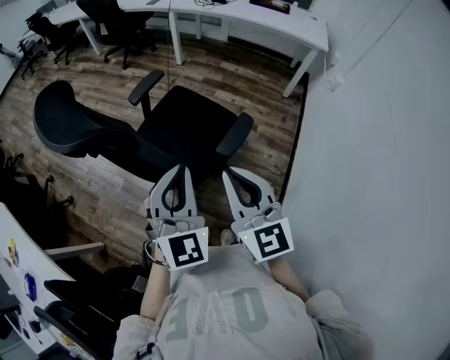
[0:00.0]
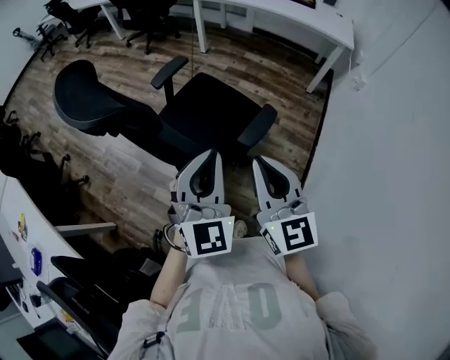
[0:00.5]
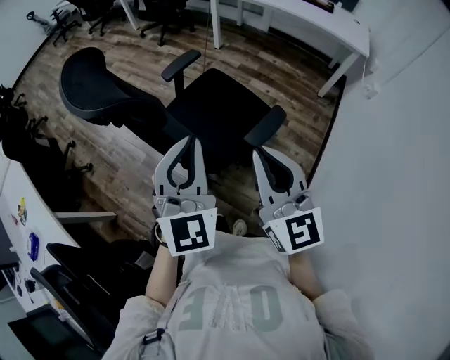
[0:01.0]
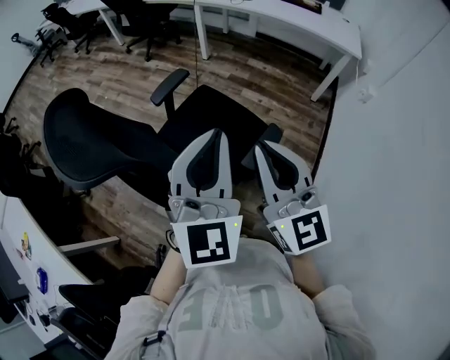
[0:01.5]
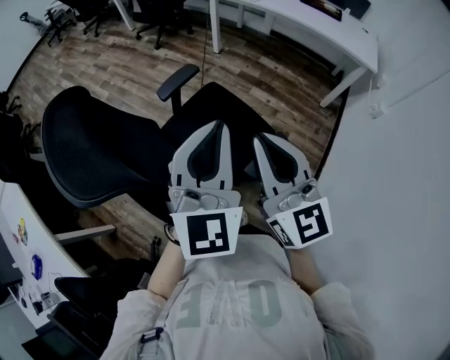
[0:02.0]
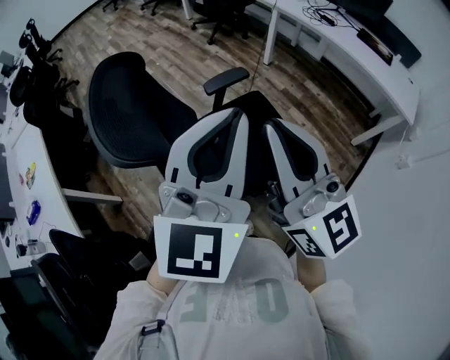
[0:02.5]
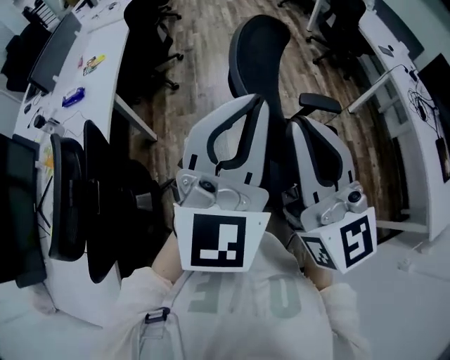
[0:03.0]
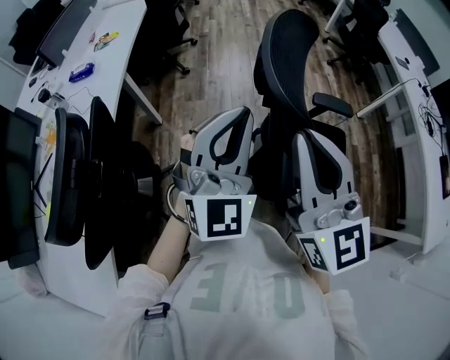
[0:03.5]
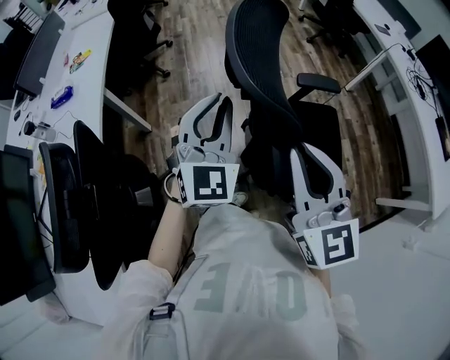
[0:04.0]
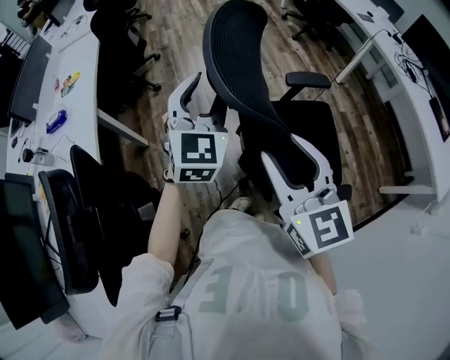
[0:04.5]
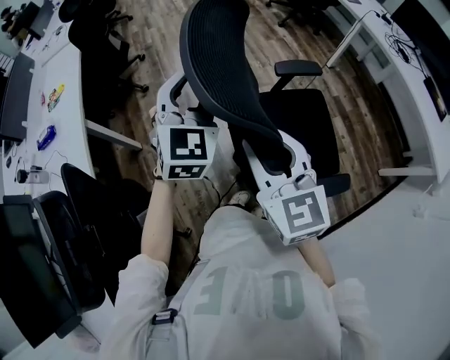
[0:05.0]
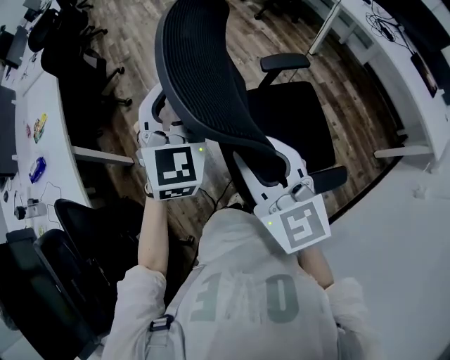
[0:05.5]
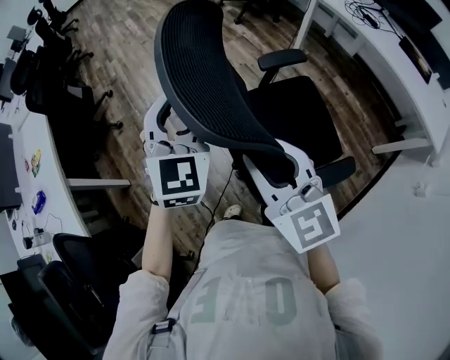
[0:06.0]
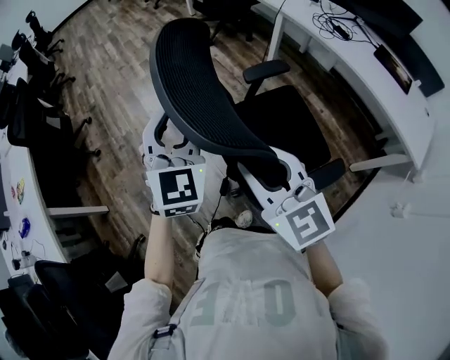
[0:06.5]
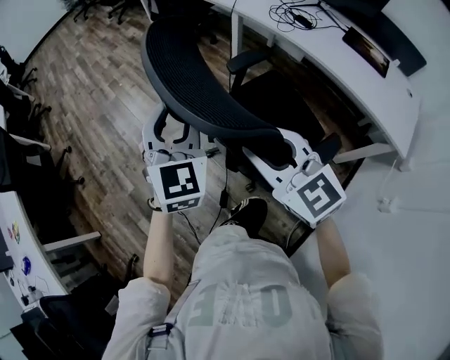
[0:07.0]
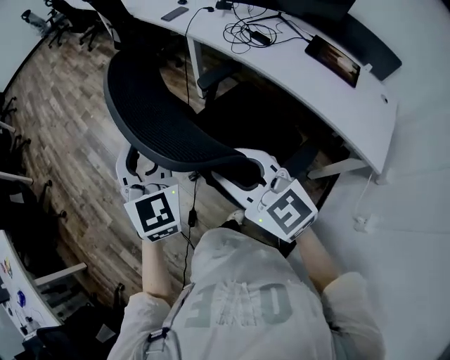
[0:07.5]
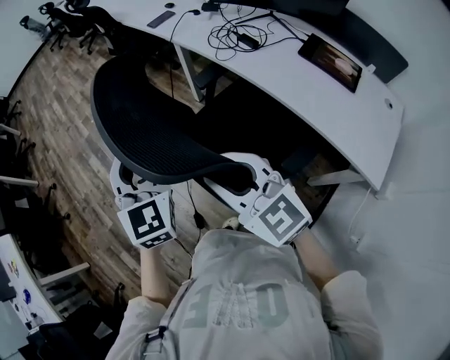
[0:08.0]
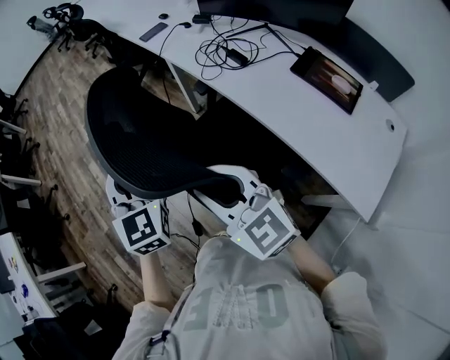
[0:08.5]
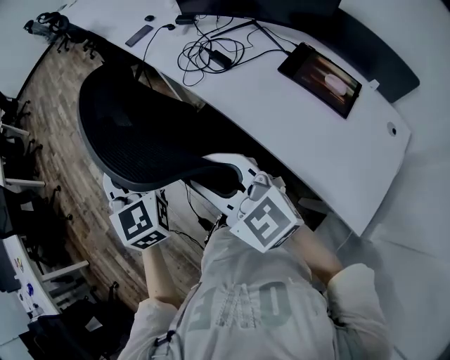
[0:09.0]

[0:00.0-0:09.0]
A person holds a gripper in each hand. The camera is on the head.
0:00.0 to 0:02.0: The right gripper goes some 15 cm forward; the left gripper heads forward and upward, covering roughly 15 cm.
0:02.0 to 0:04.5: The right gripper moves approximately 10 cm upward and comes back, changes its angle by roughly 40 degrees, and opens. Meanwhile the left gripper moves some 30 cm, rotates roughly 40 degrees, and opens its fingers.
0:04.5 to 0:07.0: The pair of grippers is taken to the right, roughly 50 cm.
0:07.0 to 0:09.0: The pair of grippers is taken to the right, about 40 cm.

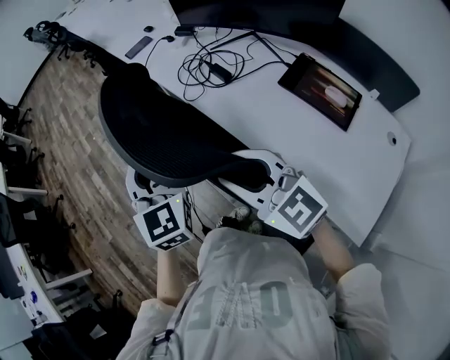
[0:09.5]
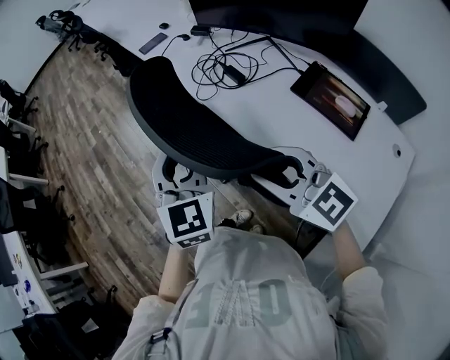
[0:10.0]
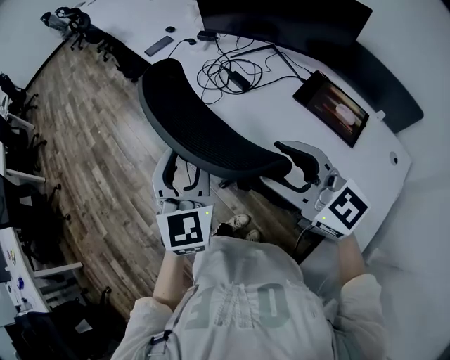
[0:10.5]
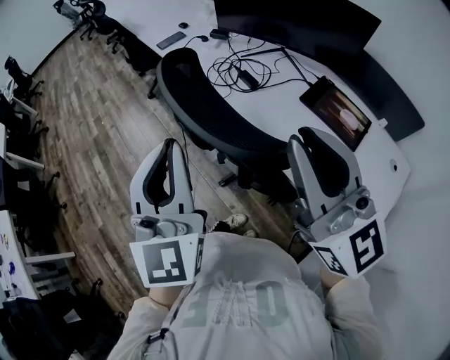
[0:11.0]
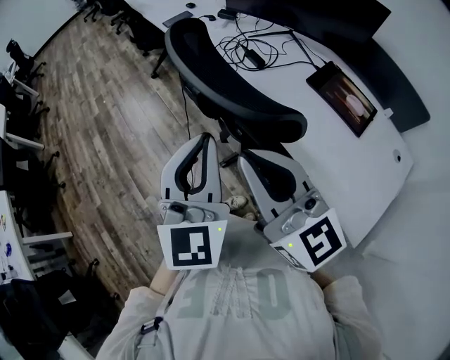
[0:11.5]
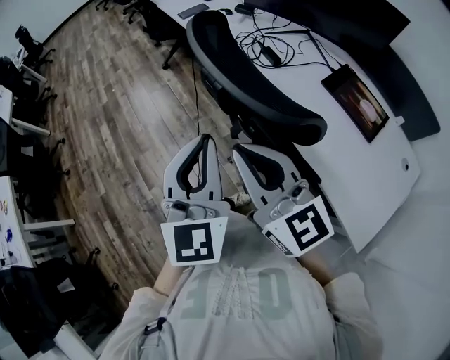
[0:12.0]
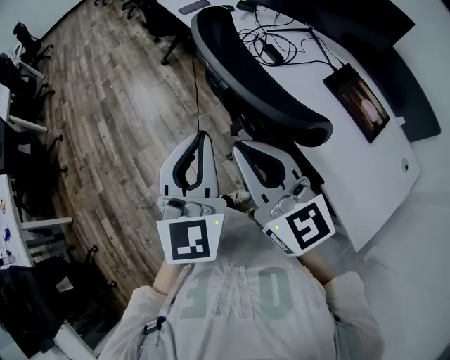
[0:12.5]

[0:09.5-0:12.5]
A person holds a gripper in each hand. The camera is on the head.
0:09.5 to 0:11.0: The right gripper moves upward, about 15 cm, rotates about 40 degrees, and opens and closes again. The left gripper is displaced upward and backward by about 15 cm, and closes its fingers.
0:11.0 to 0:12.5: The left gripper travels downward by roughly 10 cm. The right gripper is displaced to the left and downward by roughly 20 cm.

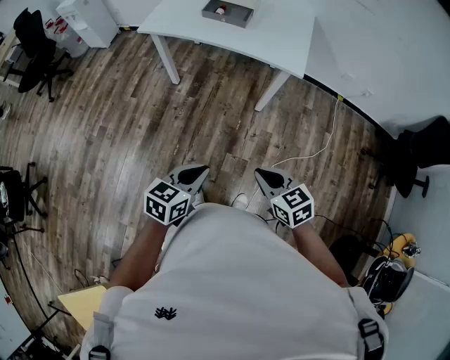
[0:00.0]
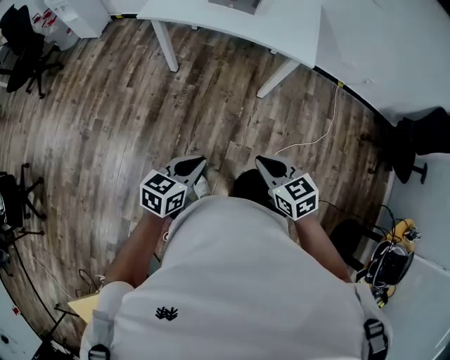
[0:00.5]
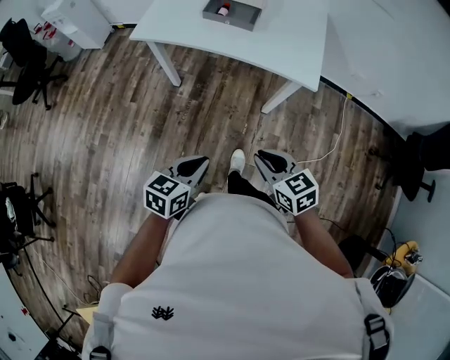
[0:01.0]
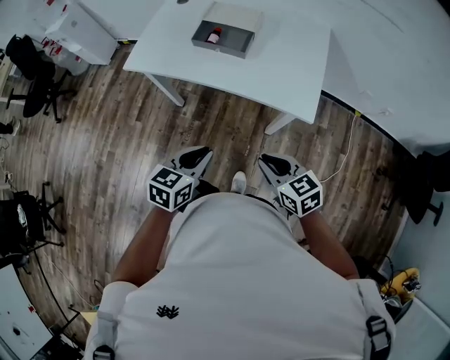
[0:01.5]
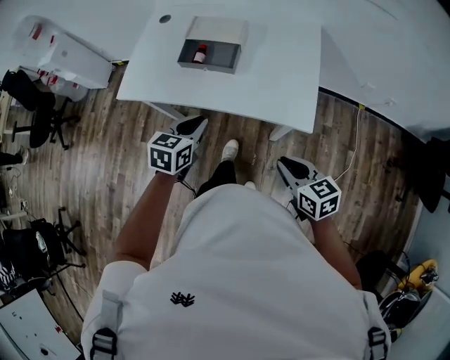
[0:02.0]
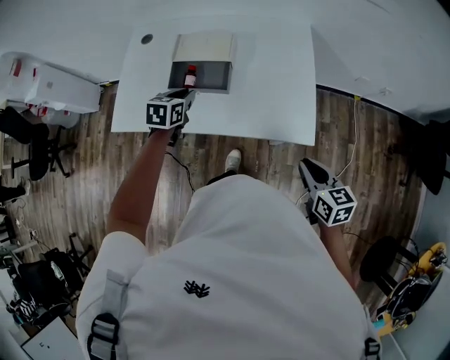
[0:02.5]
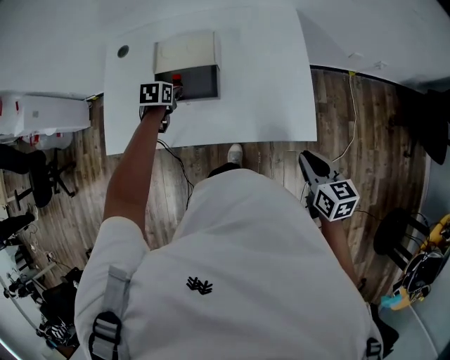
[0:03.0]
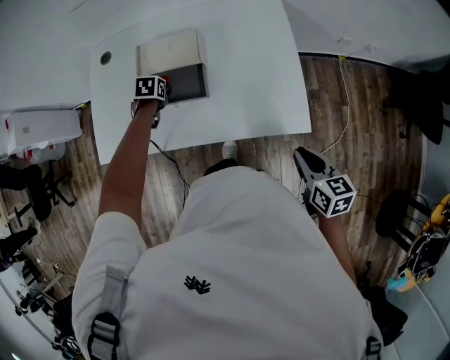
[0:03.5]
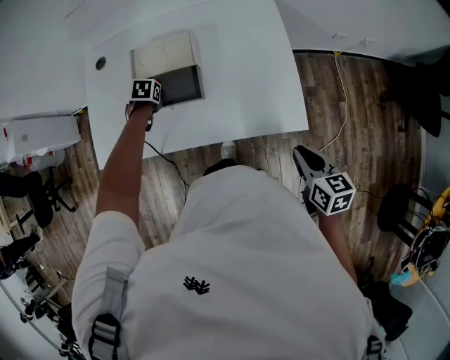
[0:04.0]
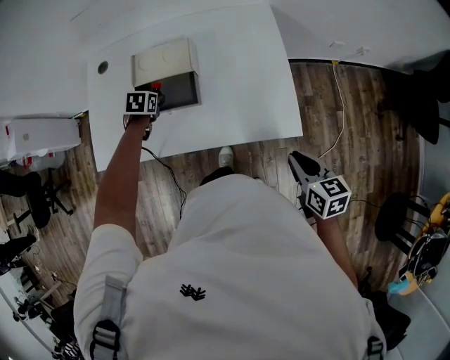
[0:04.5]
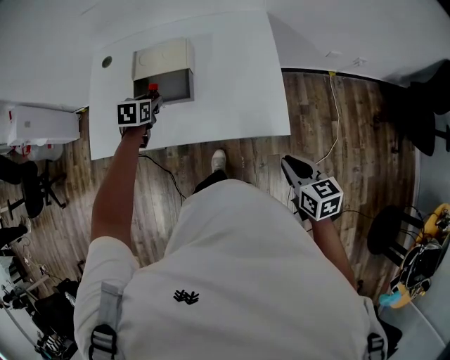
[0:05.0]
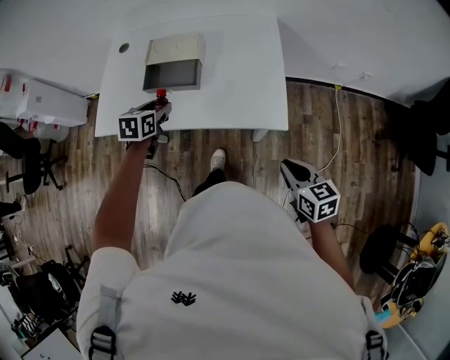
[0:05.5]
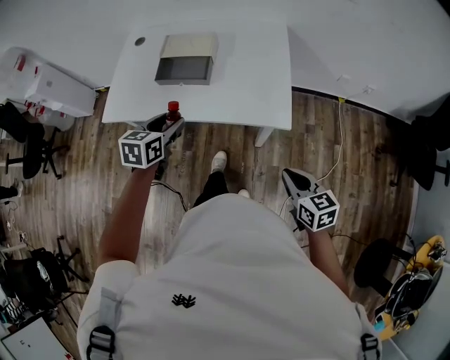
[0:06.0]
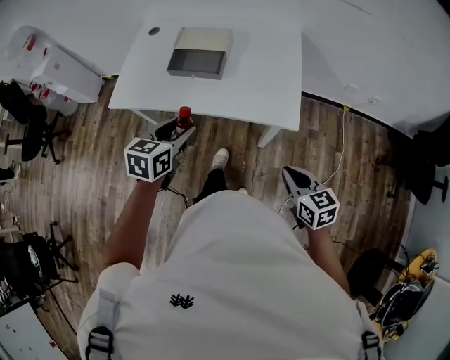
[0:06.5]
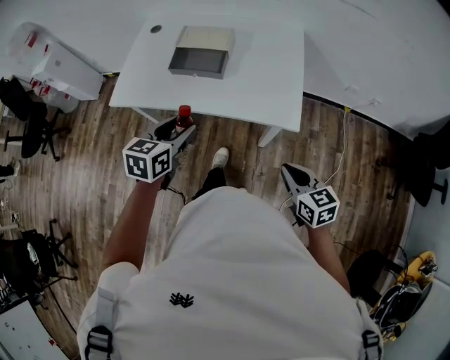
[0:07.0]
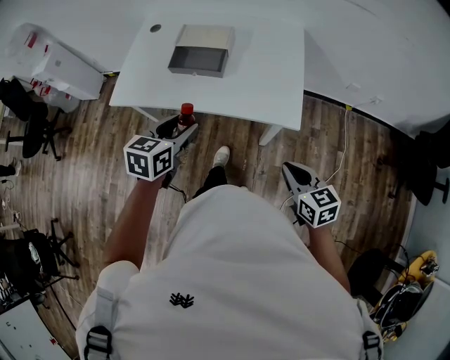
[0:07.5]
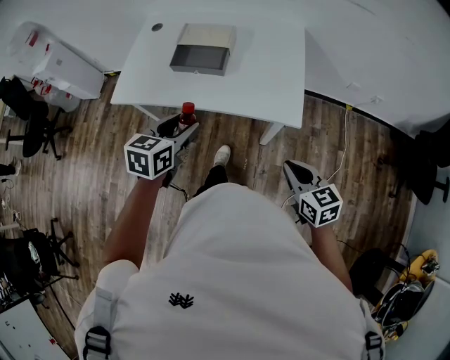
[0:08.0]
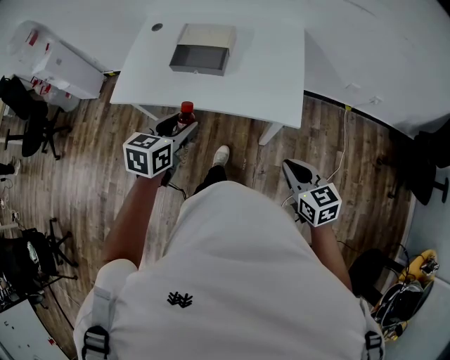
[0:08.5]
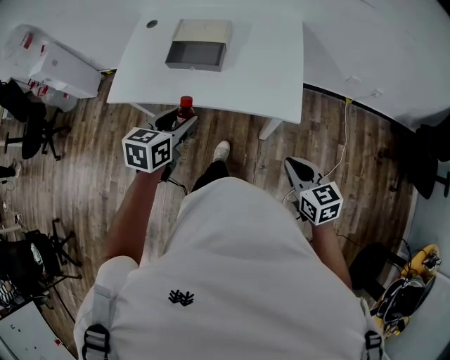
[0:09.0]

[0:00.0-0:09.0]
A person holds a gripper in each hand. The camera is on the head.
0:00.0 to 0:02.0: Both grippers travel together forward, some 40 cm.
0:02.0 to 0:04.5: The right gripper ends up roughly 10 cm from where it was, and turns by about 30 degrees, while the left gripper moves approximately 35 cm, tips its fingers downward by about 30 degrees, and opens its fingers.
0:04.5 to 0:07.0: The right gripper heads backward, covering about 10 cm, and swivels about 20 degrees. Meanwhile the left gripper heads backward and upward, covering about 40 cm, and tilts its fingers about 30 degrees upward.
0:07.0 to 0:09.0: Neither gripper changes place.

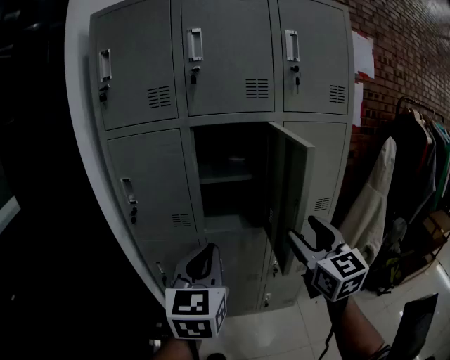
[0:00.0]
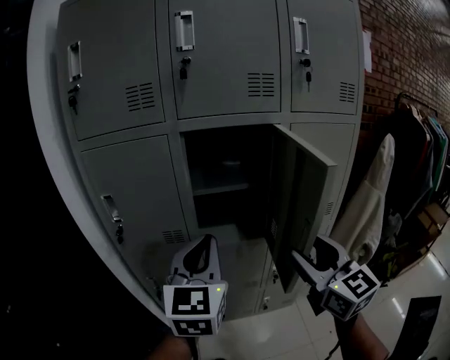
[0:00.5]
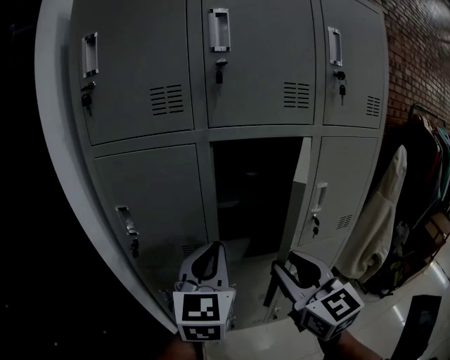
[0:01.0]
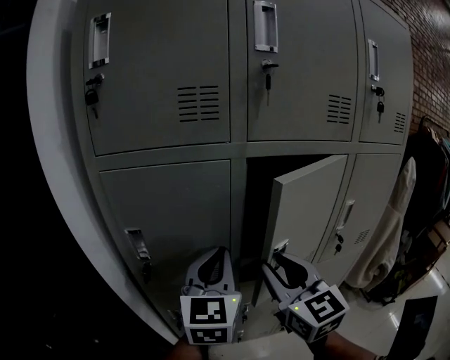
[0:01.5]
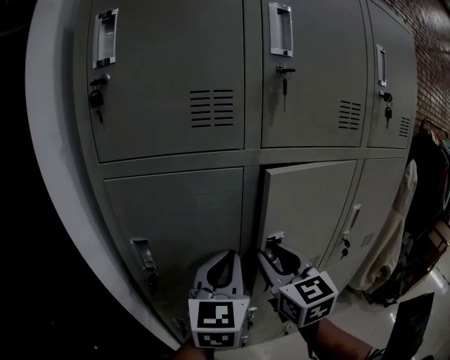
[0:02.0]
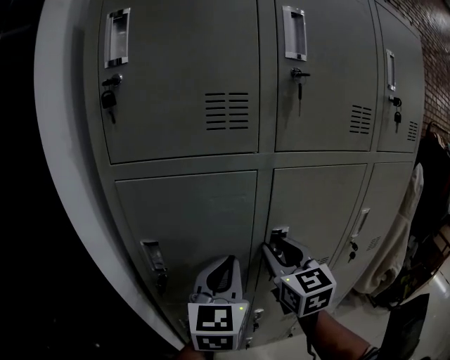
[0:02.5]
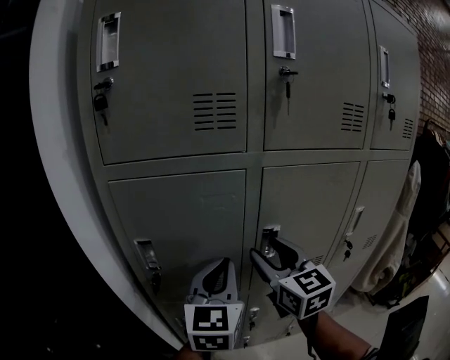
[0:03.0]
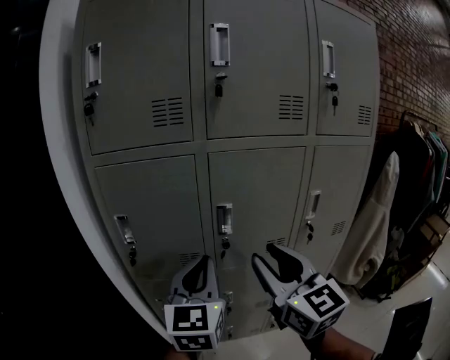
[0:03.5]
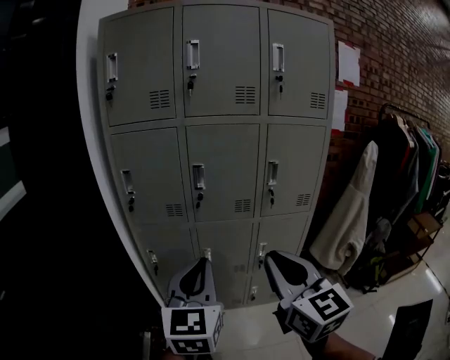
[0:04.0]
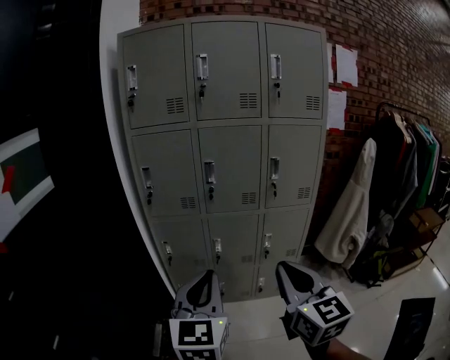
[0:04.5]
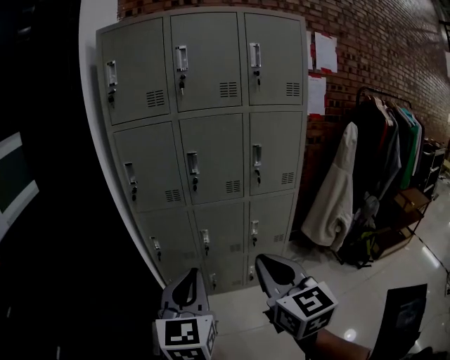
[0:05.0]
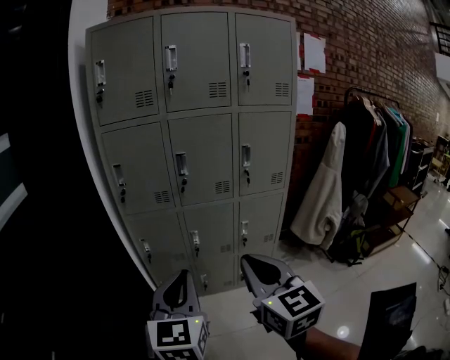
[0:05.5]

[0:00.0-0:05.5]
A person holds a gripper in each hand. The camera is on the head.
0:00.0 to 0:02.0: The right gripper shifts about 35 cm to the left and forward, and closes its fingers. Meanwhile the left gripper shifts approximately 25 cm forward and to the left.
0:02.0 to 0:03.5: The right gripper heads backward and to the right, covering approximately 15 cm; the left gripper heads backward, covering some 10 cm.
0:03.5 to 0:05.5: Both grippers travel together backward, roughly 35 cm. The right gripper closes up.
